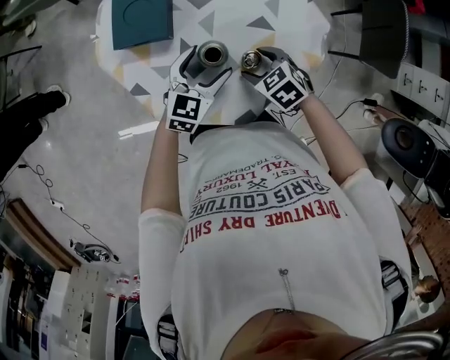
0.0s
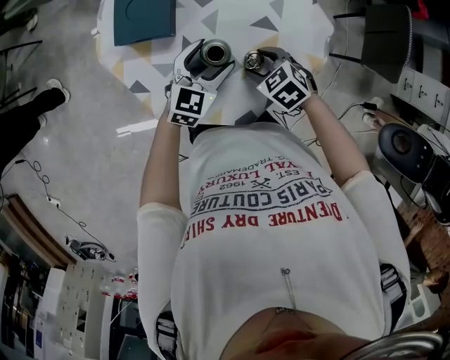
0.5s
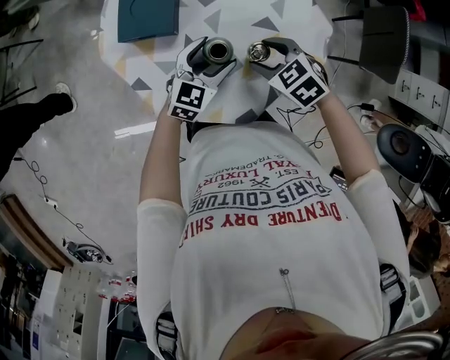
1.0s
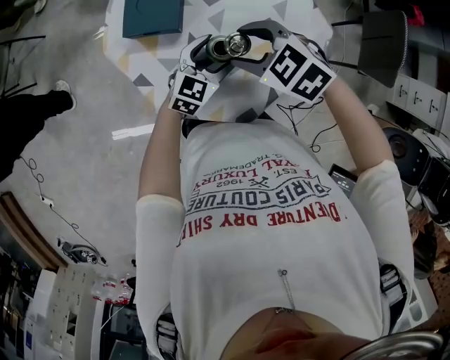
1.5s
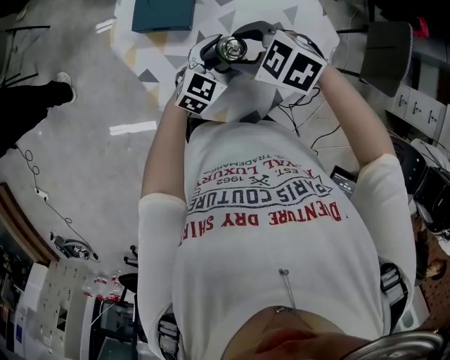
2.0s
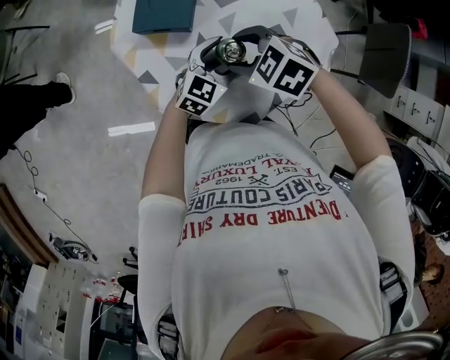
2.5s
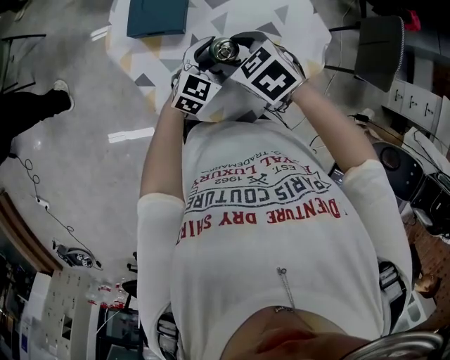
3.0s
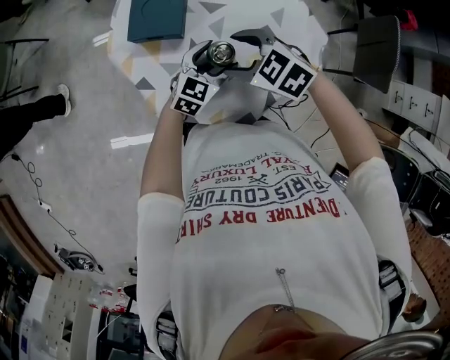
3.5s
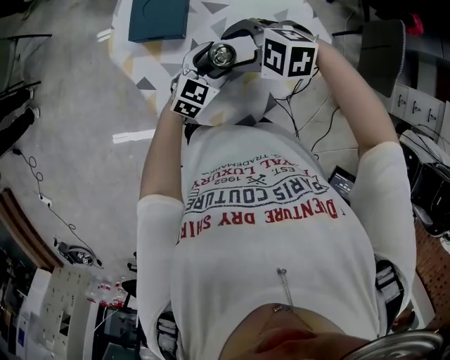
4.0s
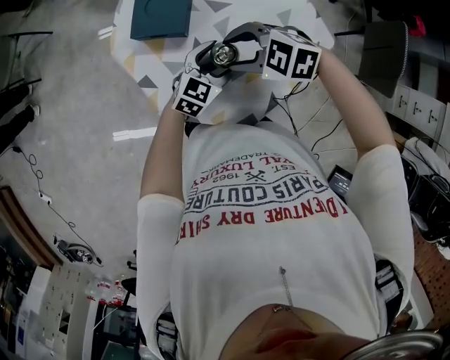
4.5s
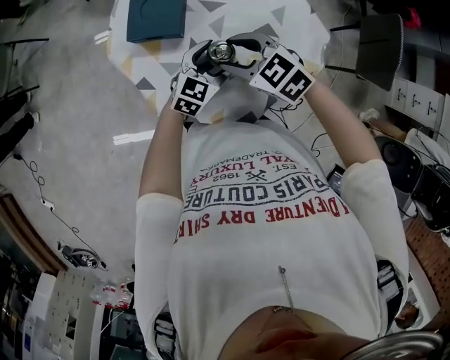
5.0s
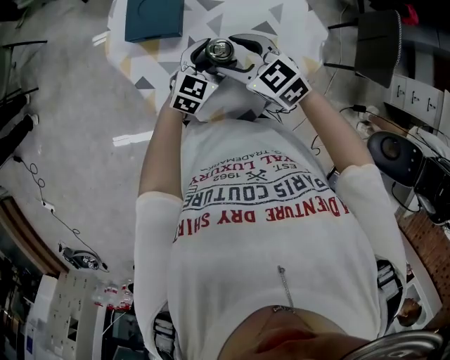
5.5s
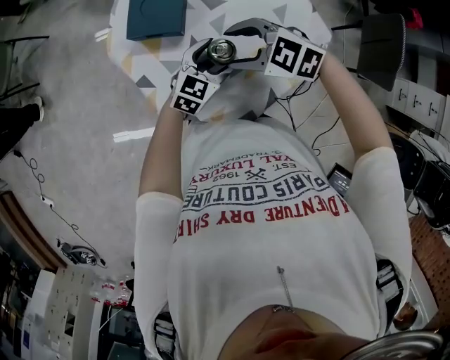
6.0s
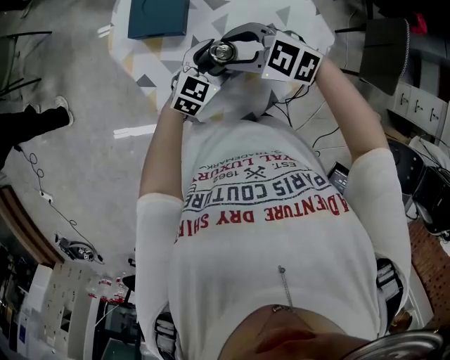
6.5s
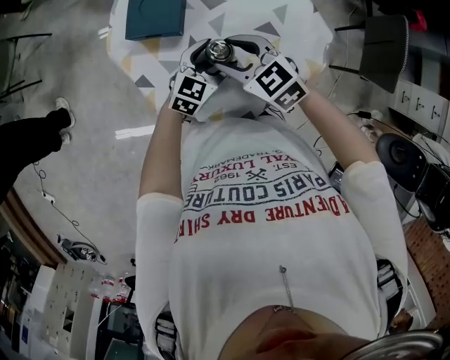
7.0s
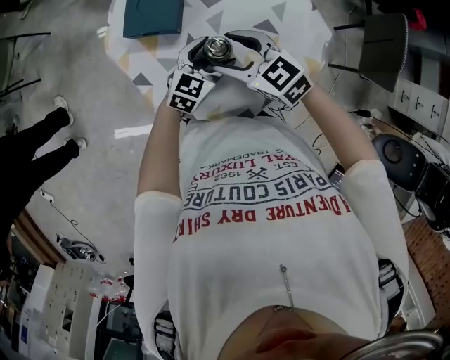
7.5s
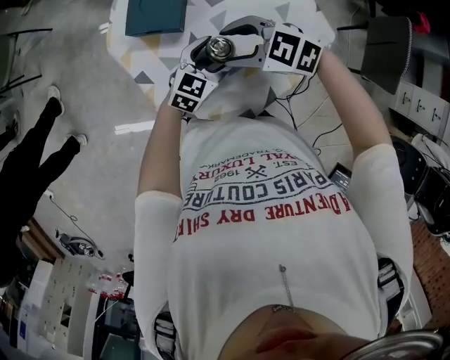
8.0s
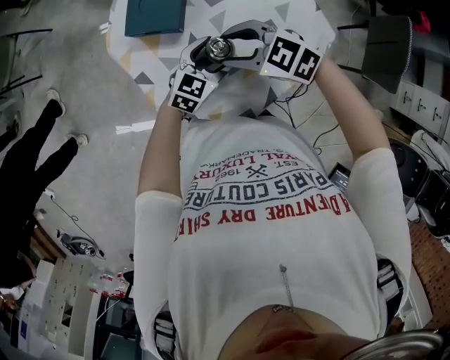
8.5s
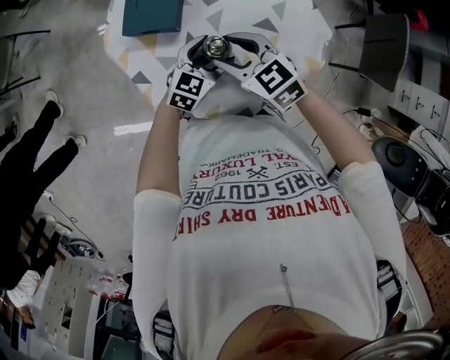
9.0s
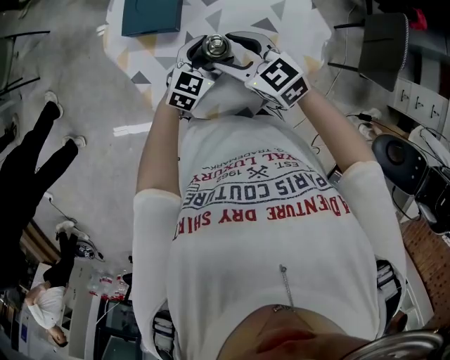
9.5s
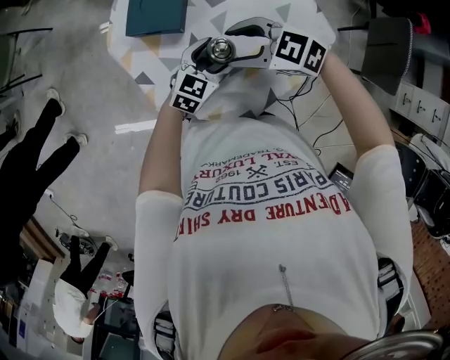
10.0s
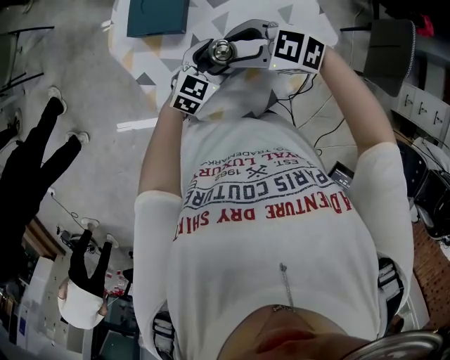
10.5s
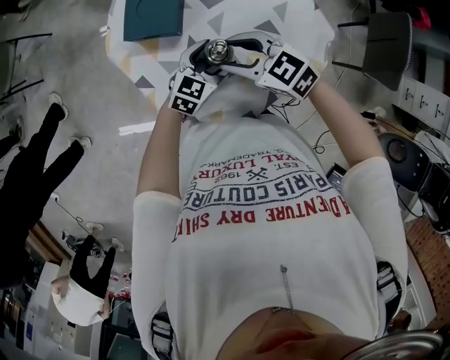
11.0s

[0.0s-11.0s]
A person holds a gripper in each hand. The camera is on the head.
0.0s to 2.0s: The right gripper shifts approximately 10 cm upward, and turns by roughly 30 degrees.
3.5s to 5.5s: The right gripper swivels approximately 20 degrees.

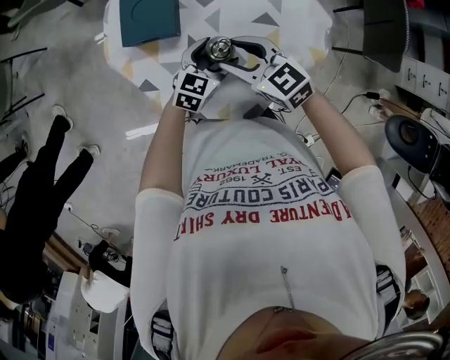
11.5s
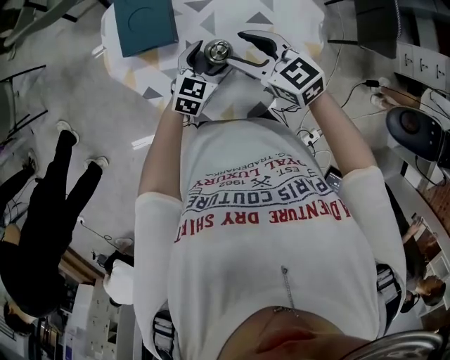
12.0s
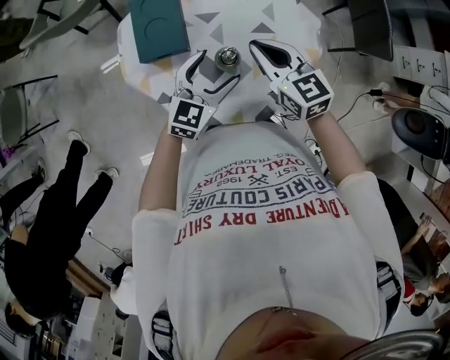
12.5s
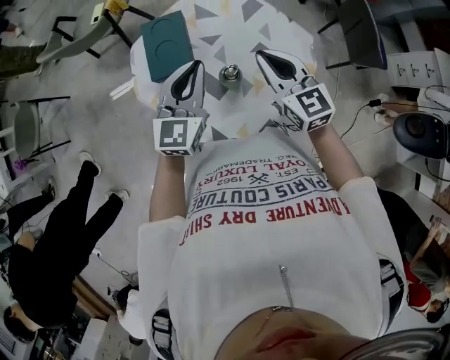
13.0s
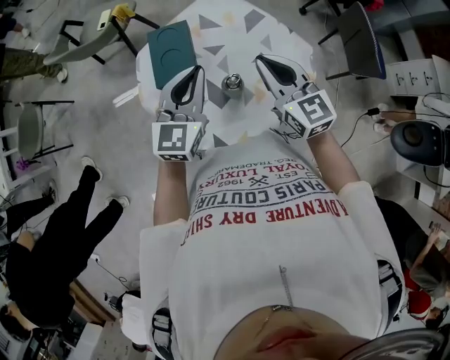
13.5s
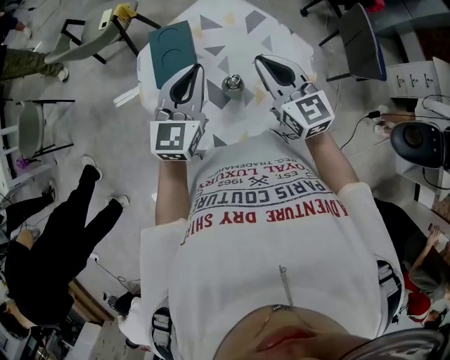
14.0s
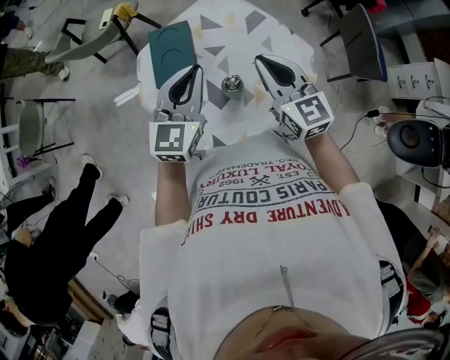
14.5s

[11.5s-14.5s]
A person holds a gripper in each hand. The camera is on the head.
11.5s to 13.0s: The right gripper heads upward, covering roughly 15 cm, rotates roughly 40 degrees, and closes up. The left gripper heads upward, covering approximately 25 cm, rotates roughly 30 degrees, and closes up.
13.0s to 14.5s: The grippers make only small movements.

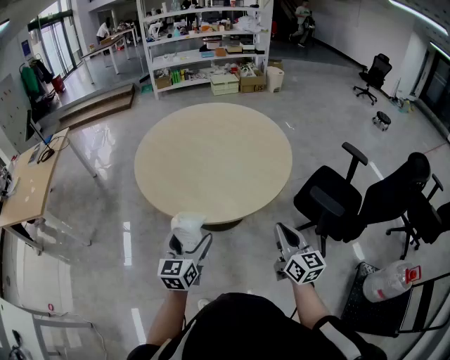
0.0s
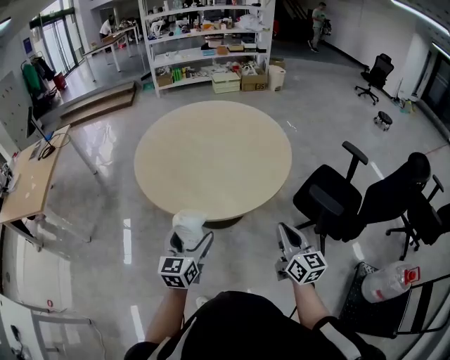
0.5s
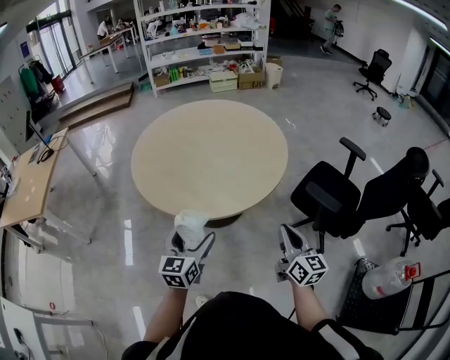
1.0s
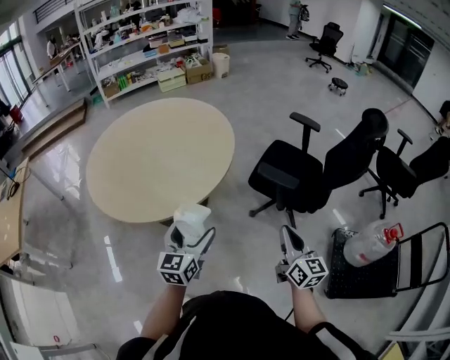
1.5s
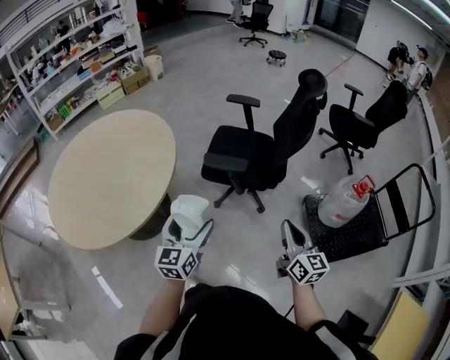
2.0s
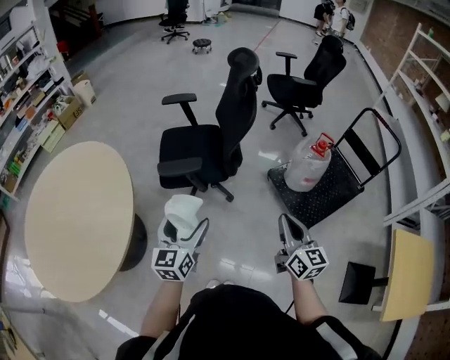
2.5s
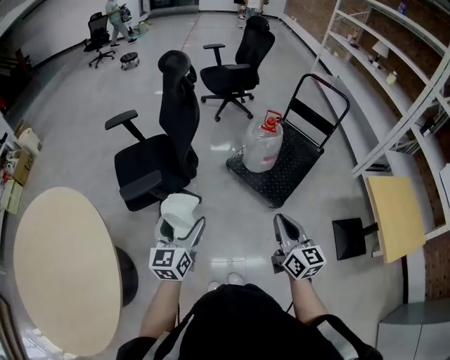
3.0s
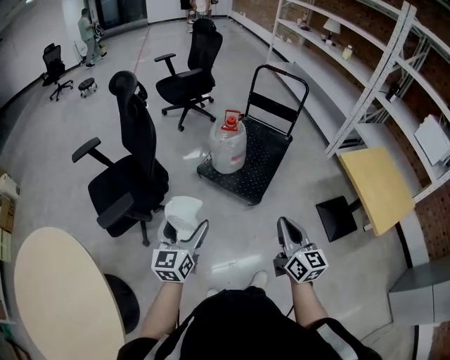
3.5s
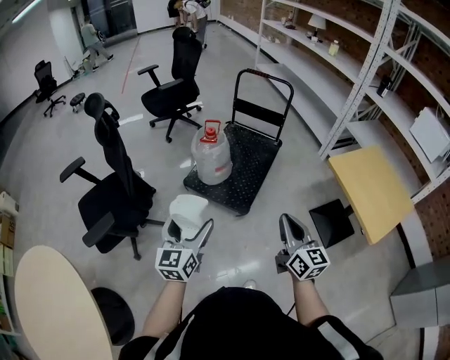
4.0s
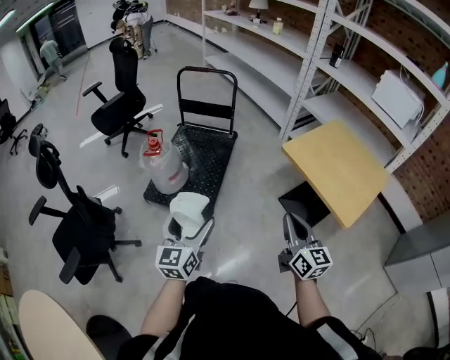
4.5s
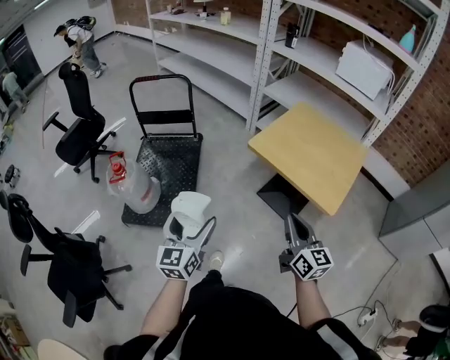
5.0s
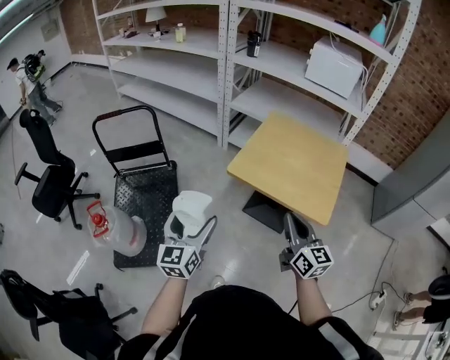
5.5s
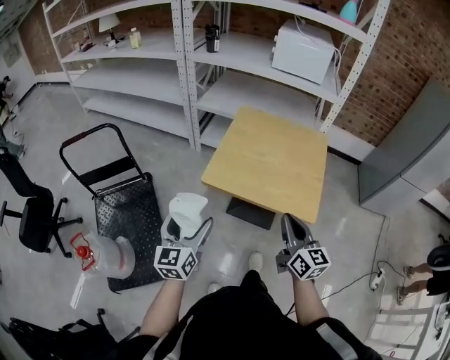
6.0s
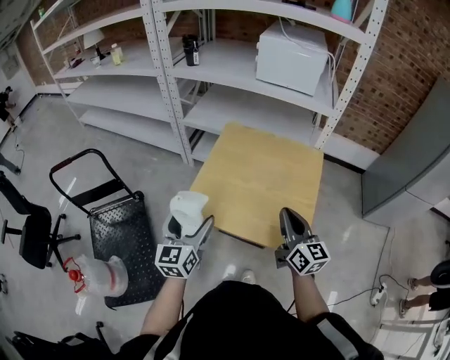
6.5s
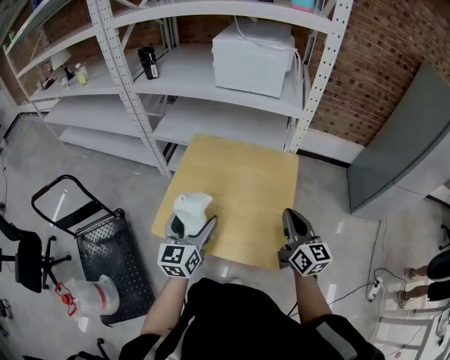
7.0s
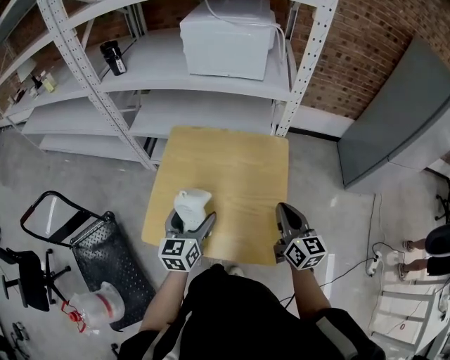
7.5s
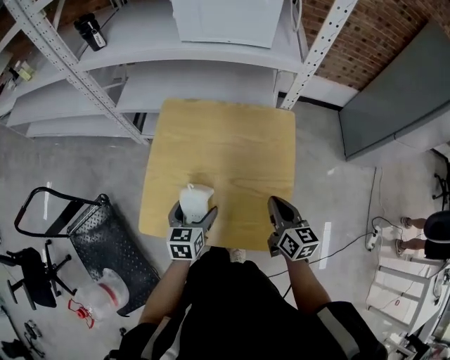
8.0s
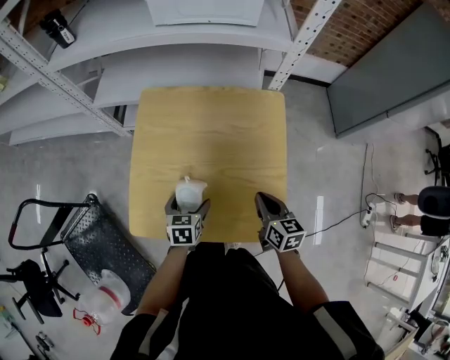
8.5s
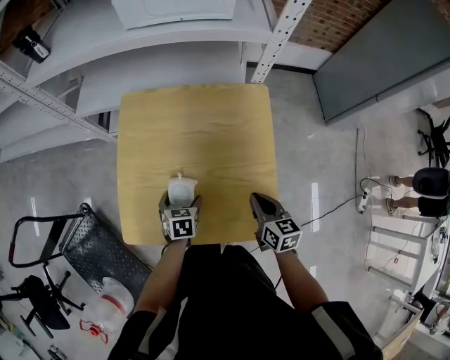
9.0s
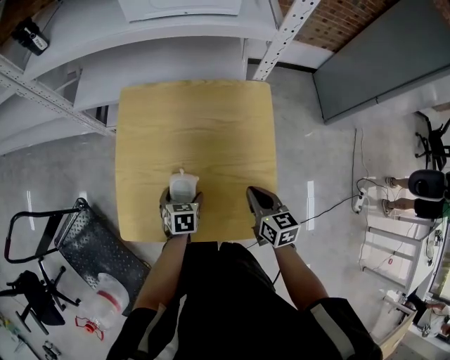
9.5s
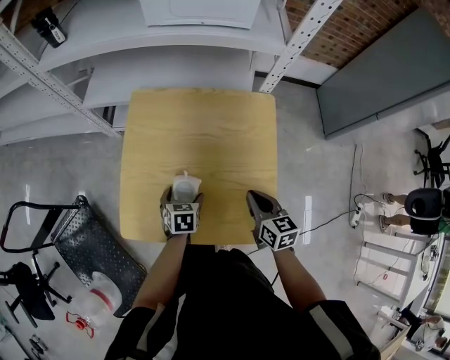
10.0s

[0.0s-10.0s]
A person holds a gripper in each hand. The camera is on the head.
0.0s to 2.0s: The left gripper moves some 35 cm, and changes its angle by about 40 degrees; the right gripper moves approximately 35 cm, and swivels approximately 40 degrees.
2.0s to 4.0s: The left gripper shifts by some 40 cm, and changes its angle by roughly 60 degrees, while the right gripper moves approximately 40 cm, and turns by about 60 degrees.
4.0s to 6.0s: Both grippers are carried about 50 cm. The left gripper changes its angle by about 50 degrees; the right gripper turns by roughly 50 degrees.
6.0s to 8.0s: The two grippers go roughly 40 cm forward, to the right and downward. The left gripper changes its angle by approximately 30 degrees. Meanwhile the right gripper changes its angle by approximately 20 degrees.
8.0s to 10.0s: The right gripper travels downward by about 5 cm. Meanwhile the left gripper travels downward by some 10 cm, and swivels about 20 degrees.

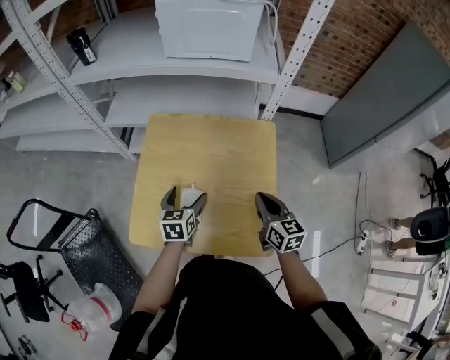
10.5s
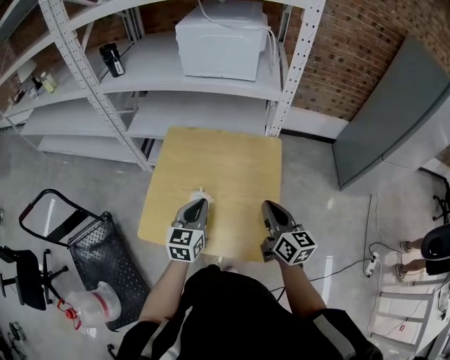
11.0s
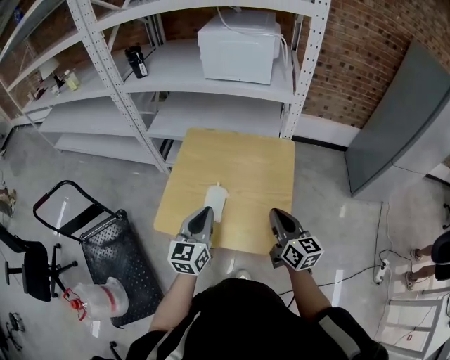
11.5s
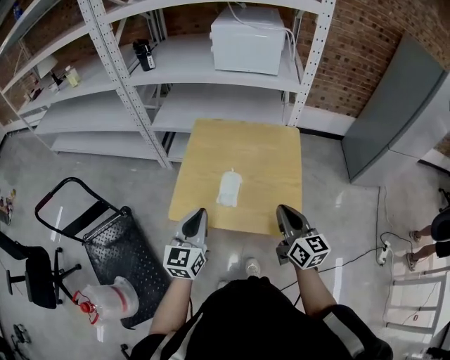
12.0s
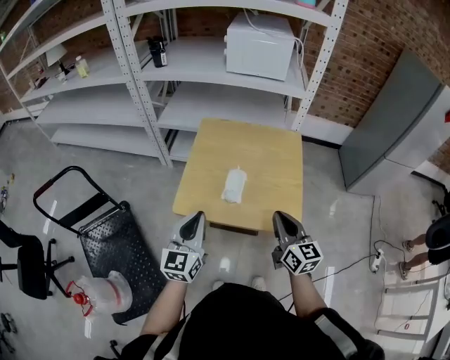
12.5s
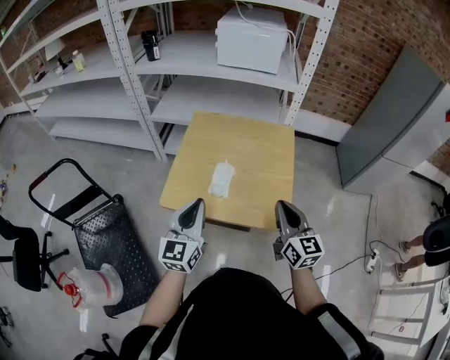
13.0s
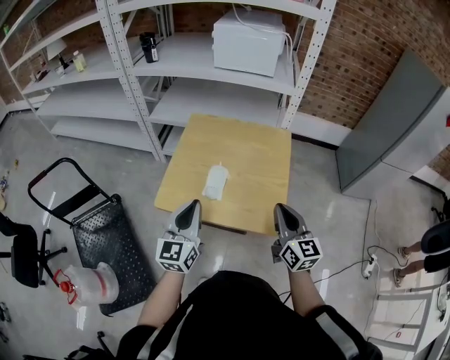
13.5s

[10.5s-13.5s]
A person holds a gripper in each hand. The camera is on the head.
10.5s to 12.0s: Both grippers move backward, upward and to the left, about 25 cm. The left gripper turns by some 30 degrees, and closes its fingers.
12.0s to 13.5s: The left gripper moves roughly 5 cm. The right gripper moves about 5 cm.
